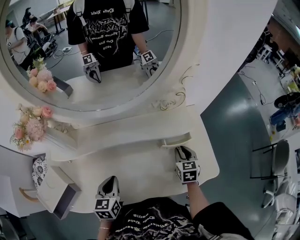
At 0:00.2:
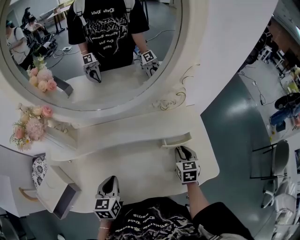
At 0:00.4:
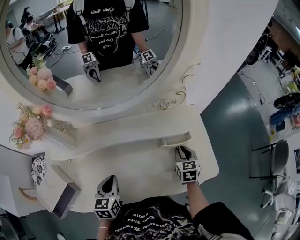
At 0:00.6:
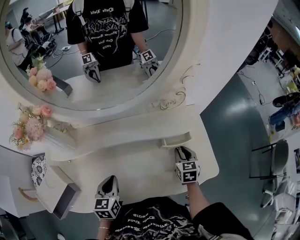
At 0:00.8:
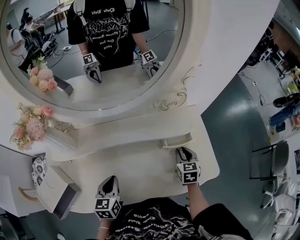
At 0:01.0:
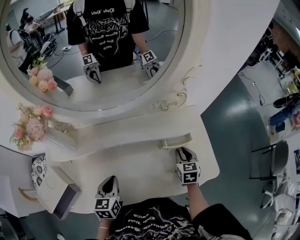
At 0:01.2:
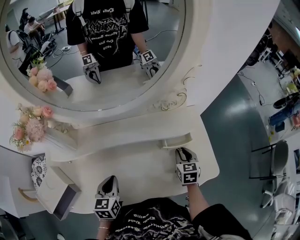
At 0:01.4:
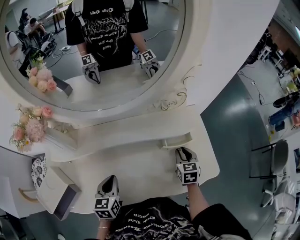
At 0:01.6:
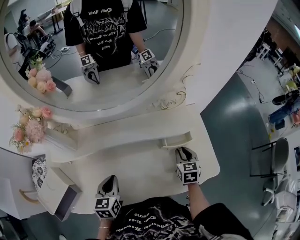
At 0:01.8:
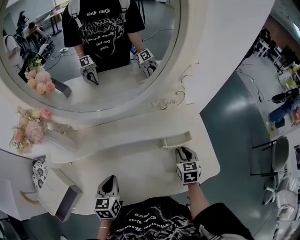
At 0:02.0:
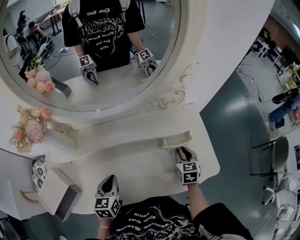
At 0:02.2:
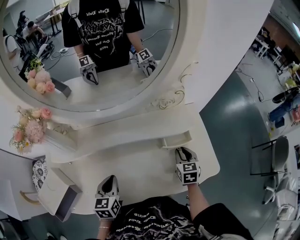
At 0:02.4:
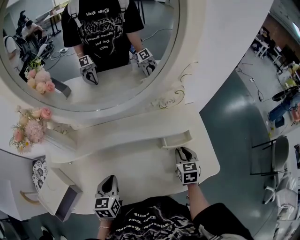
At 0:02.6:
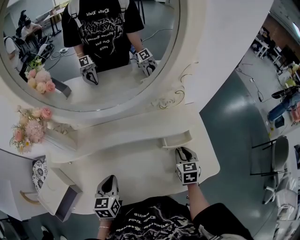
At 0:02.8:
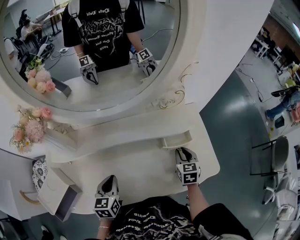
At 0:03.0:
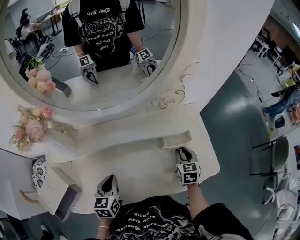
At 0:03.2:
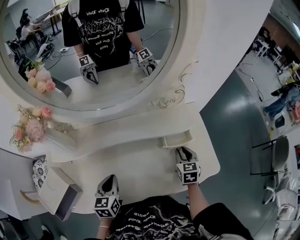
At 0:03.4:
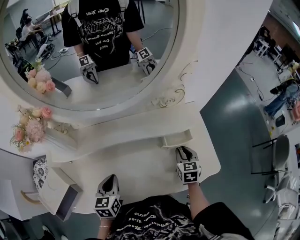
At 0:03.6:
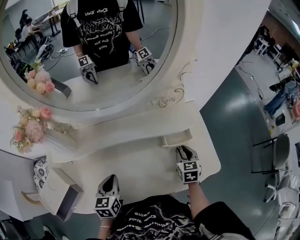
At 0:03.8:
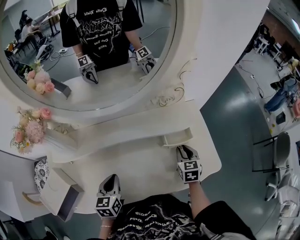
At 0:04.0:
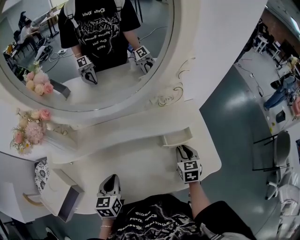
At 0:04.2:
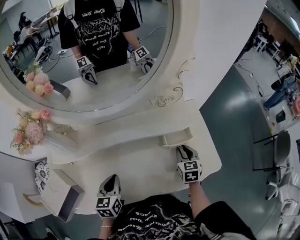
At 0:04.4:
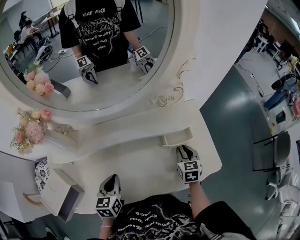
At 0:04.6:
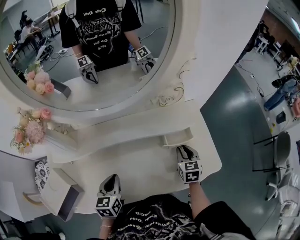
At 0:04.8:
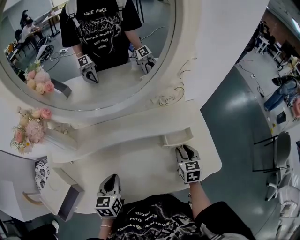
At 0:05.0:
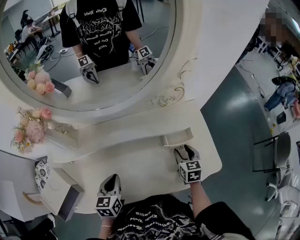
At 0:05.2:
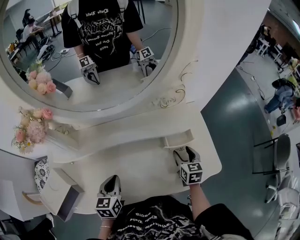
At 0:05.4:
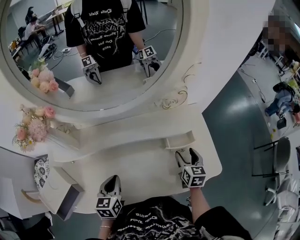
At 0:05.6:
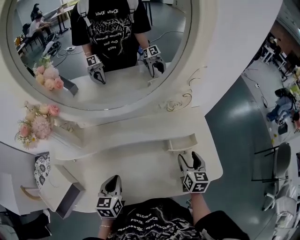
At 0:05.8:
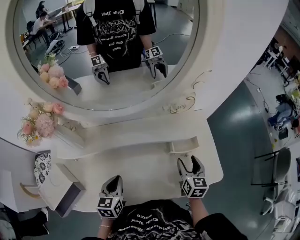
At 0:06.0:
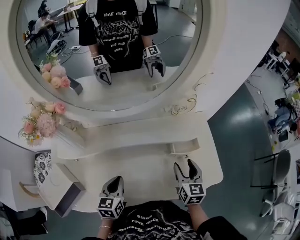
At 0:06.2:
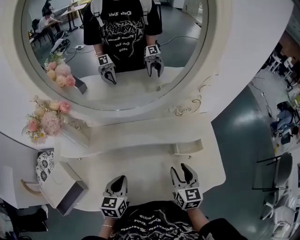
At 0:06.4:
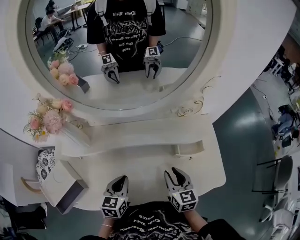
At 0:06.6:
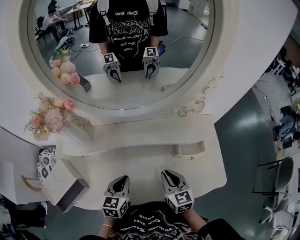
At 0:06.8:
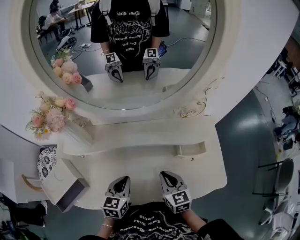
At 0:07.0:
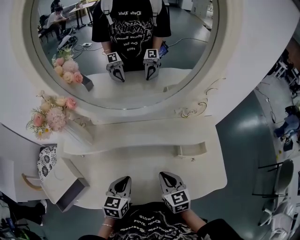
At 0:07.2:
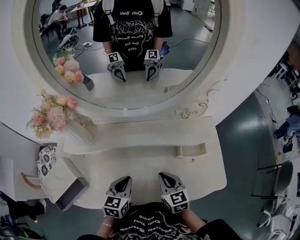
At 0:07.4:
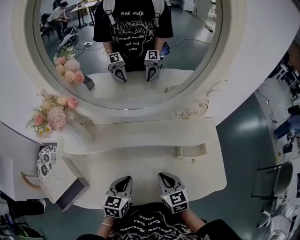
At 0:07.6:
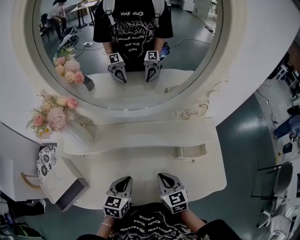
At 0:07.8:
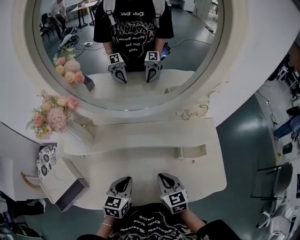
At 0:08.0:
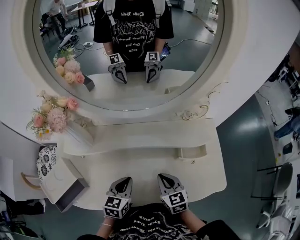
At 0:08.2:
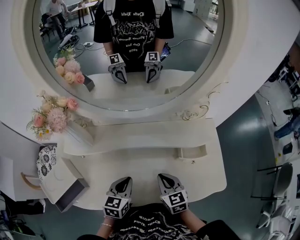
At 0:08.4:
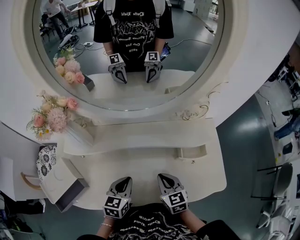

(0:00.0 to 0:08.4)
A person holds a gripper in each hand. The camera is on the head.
0:00.0 - 0:01.4: Both grippers stay put.
0:01.4 - 0:04.2: Both grippers stay put.
0:04.2 - 0:05.6: The right gripper opens its fingers.
0:05.6 - 0:07.0: The right gripper moves to the left, approximately 15 cm, swivels roughly 30 degrees, and closes its fingers.
0:07.0 - 0:08.4: Both grippers stay put.

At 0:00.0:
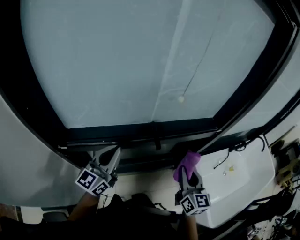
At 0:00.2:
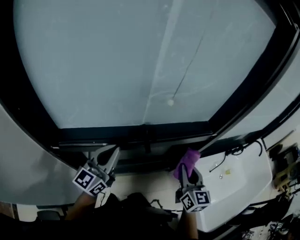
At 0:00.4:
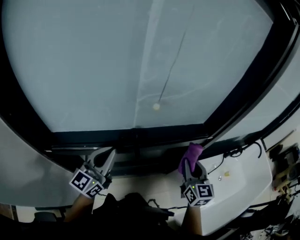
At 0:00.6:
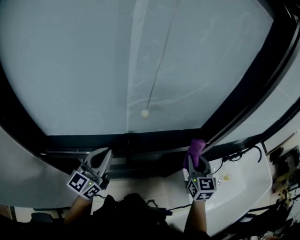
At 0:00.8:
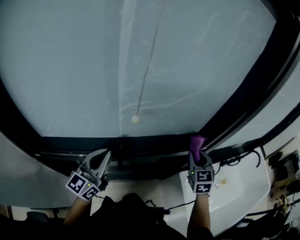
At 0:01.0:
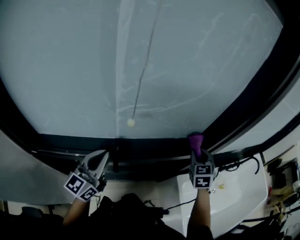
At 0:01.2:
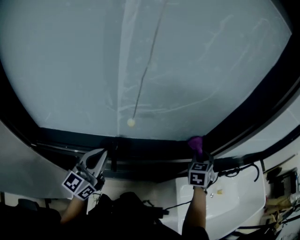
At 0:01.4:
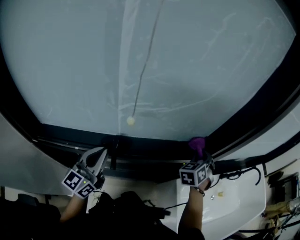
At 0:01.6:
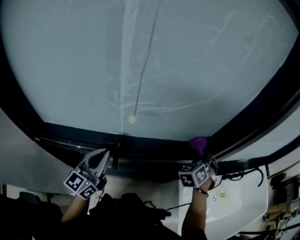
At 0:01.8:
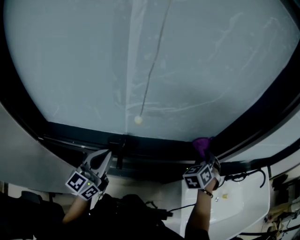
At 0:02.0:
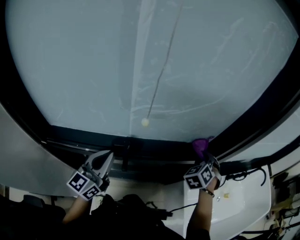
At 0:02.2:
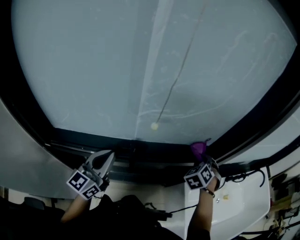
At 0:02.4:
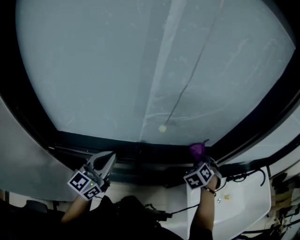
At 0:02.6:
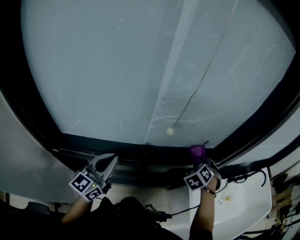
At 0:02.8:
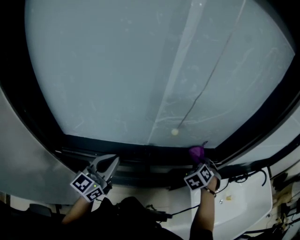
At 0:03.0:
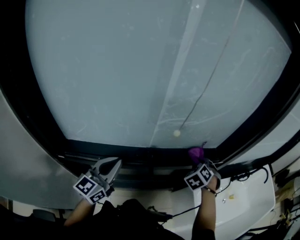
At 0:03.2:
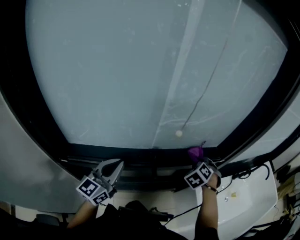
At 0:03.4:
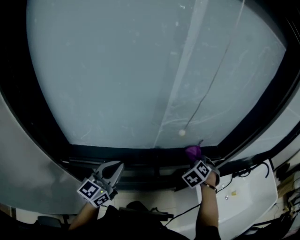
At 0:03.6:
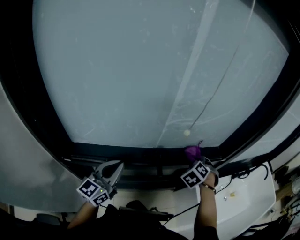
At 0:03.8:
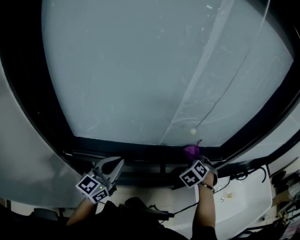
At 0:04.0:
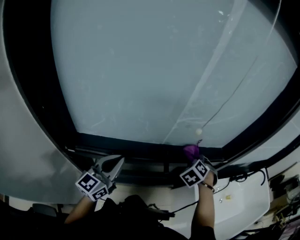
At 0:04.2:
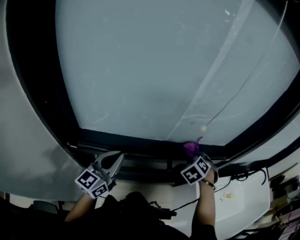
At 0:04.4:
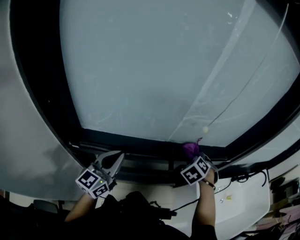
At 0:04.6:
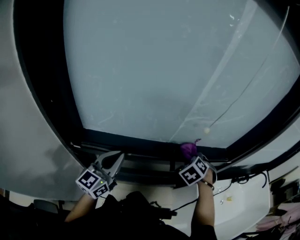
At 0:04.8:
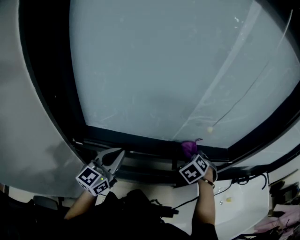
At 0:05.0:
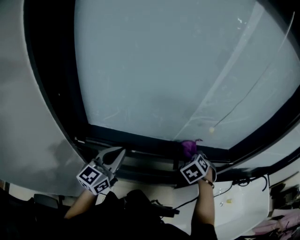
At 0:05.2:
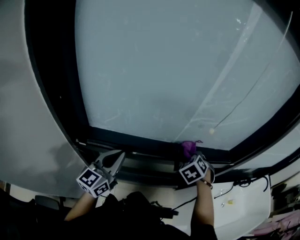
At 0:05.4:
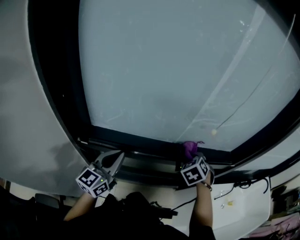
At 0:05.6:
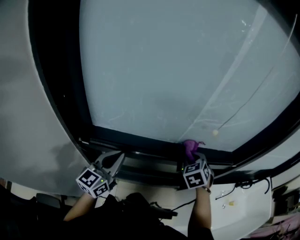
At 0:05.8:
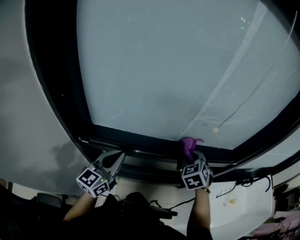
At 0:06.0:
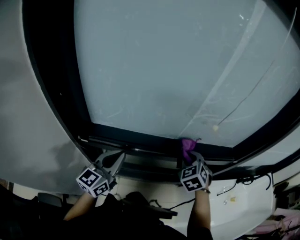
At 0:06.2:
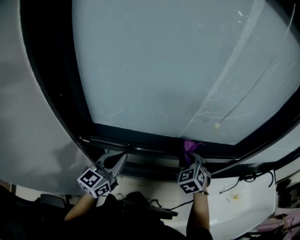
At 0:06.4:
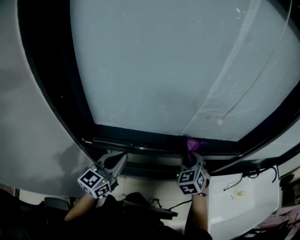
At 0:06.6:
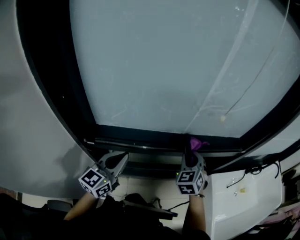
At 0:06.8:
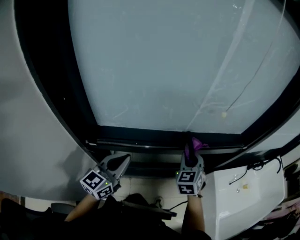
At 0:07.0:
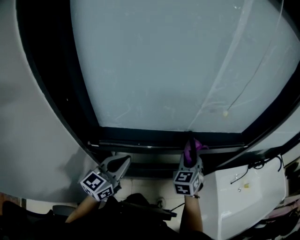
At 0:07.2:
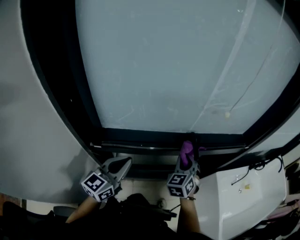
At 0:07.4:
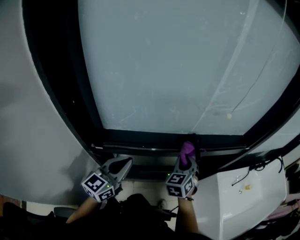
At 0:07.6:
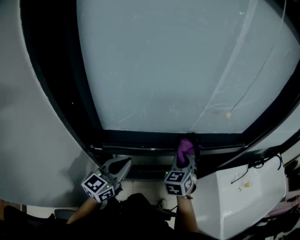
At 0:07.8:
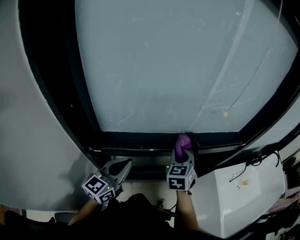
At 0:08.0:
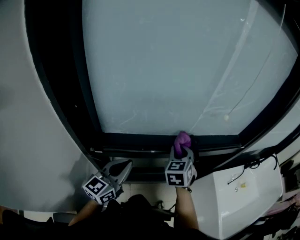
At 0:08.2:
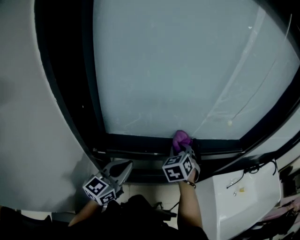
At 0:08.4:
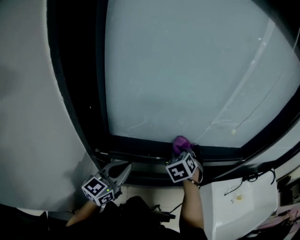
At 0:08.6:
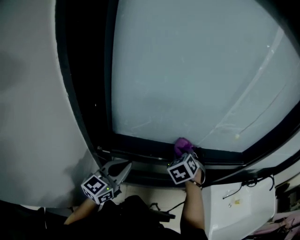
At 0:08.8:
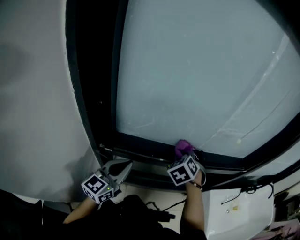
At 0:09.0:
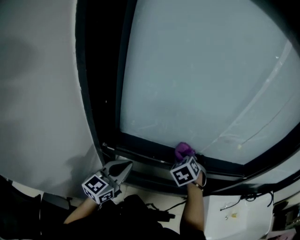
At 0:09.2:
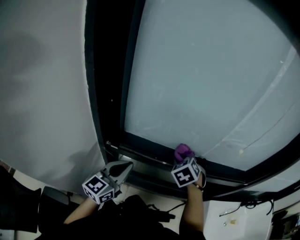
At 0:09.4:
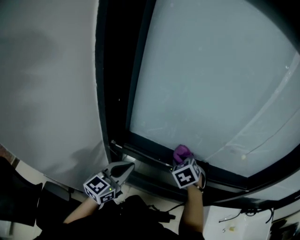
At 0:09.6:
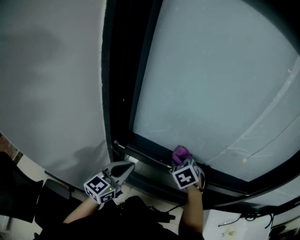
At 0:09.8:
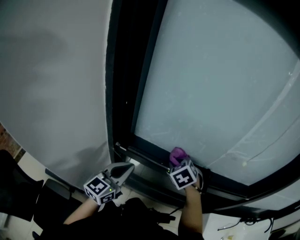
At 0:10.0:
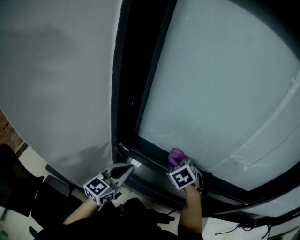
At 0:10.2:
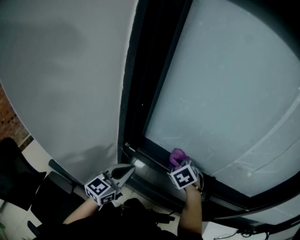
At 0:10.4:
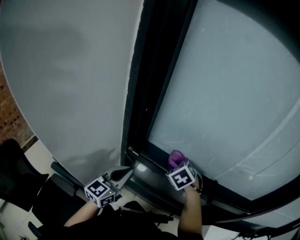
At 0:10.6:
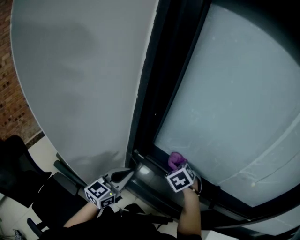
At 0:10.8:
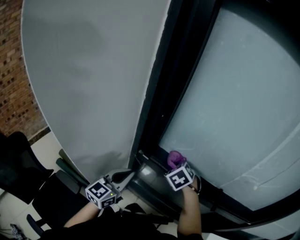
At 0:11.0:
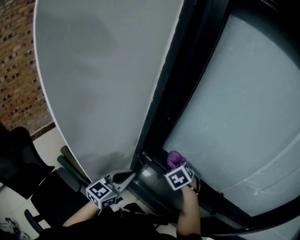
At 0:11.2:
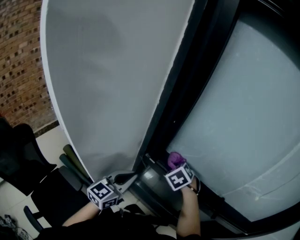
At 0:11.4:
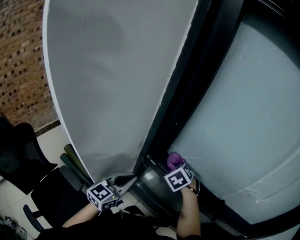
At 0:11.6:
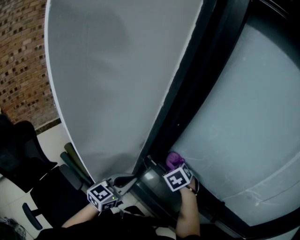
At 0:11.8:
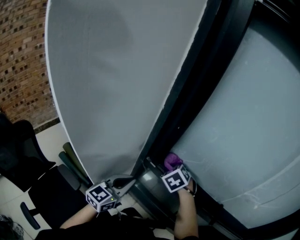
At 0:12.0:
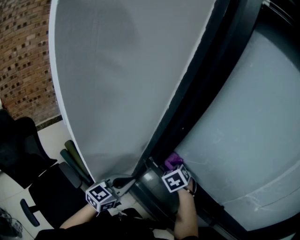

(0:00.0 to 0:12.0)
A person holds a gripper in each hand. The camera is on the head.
0:00.0 - 0:01.6: The left gripper is displaced forward and to the right by roughly 10 cm; the right gripper is displaced forward and to the right by roughly 30 cm, and changes its angle by some 70 degrees.
0:01.6 - 0:03.0: The left gripper heads to the left, covering roughly 5 cm, while the right gripper heads to the left and backward, covering some 10 cm.
0:03.0 - 0:04.4: The left gripper moves to the left, some 5 cm. Meanwhile the right gripper goes roughly 10 cm to the left and backward.
0:04.4 - 0:06.0: The right gripper travels to the left by about 10 cm, and turns by about 20 degrees.
0:06.0 - 0:07.6: The right gripper moves to the left and backward, approximately 10 cm, and changes its angle by approximately 30 degrees.
0:07.6 - 0:09.0: The right gripper travels to the left by some 10 cm, and swivels approximately 40 degrees.
0:09.0 - 0:10.4: The right gripper moves some 15 cm, and changes its angle by some 20 degrees. Meanwhile the left gripper shifts by some 5 cm.
0:10.4 - 0:12.0: The right gripper goes approximately 10 cm to the left; the left gripper travels to the left by some 5 cm.

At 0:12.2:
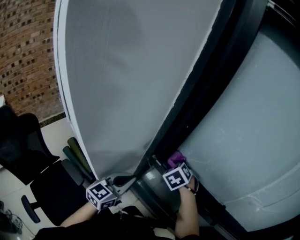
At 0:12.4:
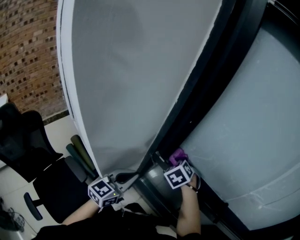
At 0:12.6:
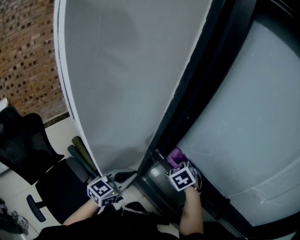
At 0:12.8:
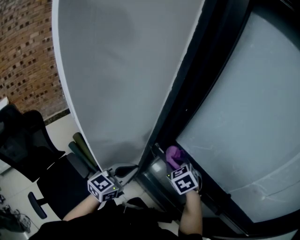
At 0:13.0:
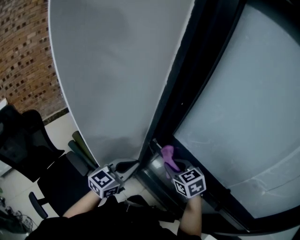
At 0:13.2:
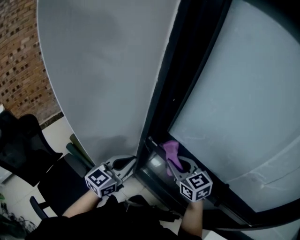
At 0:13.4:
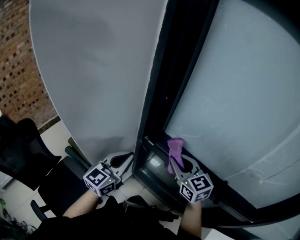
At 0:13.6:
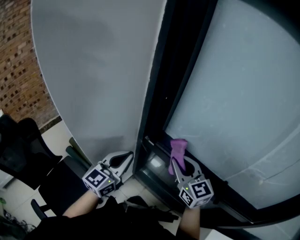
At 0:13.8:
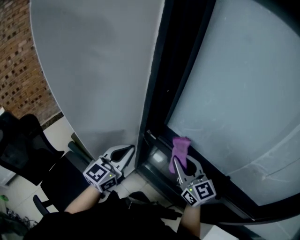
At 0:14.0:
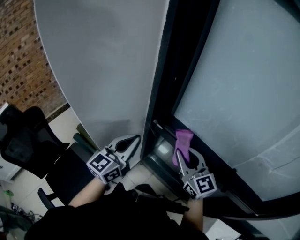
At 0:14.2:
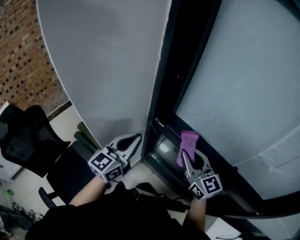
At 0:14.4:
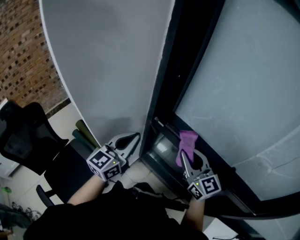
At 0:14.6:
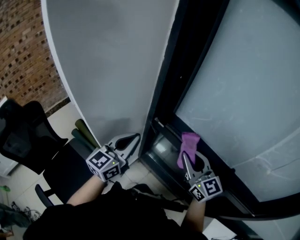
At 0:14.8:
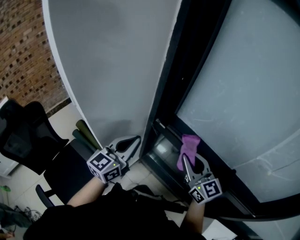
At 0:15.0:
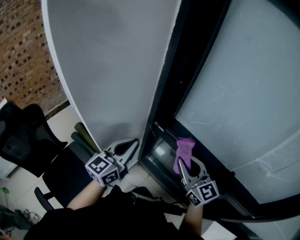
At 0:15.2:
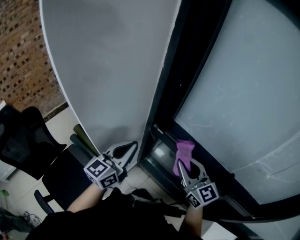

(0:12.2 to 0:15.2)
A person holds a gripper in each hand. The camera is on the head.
0:12.2 - 0:13.8: The left gripper is displaced upward by some 5 cm. The right gripper shifts about 20 cm backward and upward, and tips its fingers upward by about 50 degrees.
0:13.8 - 0:15.2: There are only small adjustments of the grippers.
